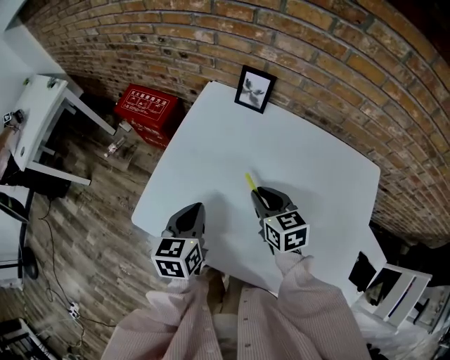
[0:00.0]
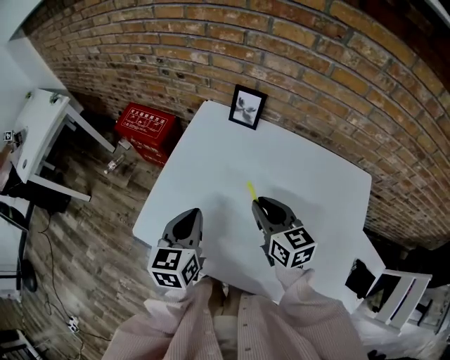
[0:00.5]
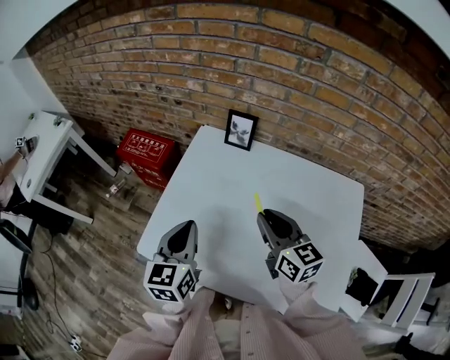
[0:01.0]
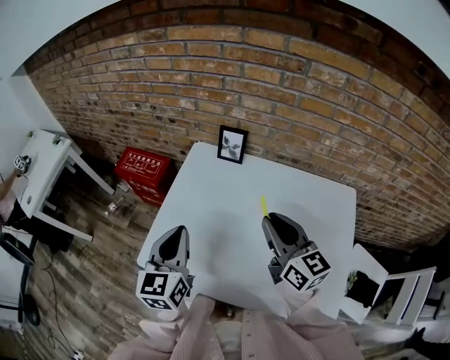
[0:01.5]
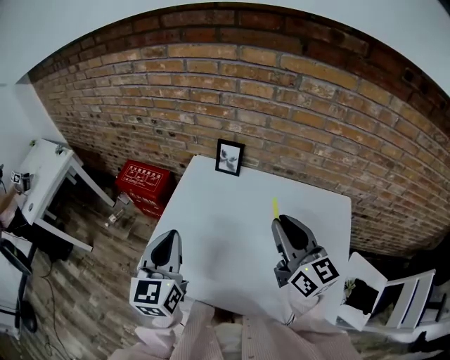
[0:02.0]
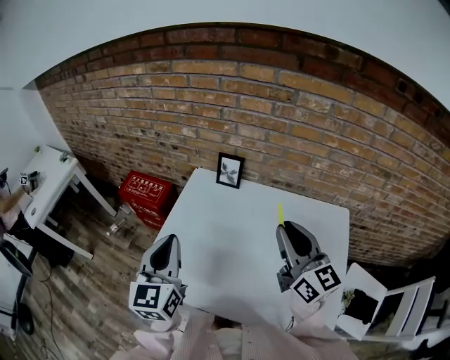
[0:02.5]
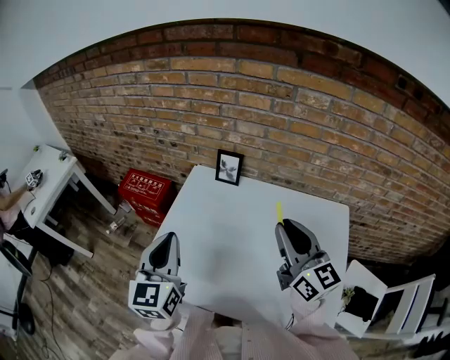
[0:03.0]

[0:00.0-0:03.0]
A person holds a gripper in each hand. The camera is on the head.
0:00.0 to 0:01.5: Both grippers travel together upward, roughly 15 cm. The left gripper turns by approximately 20 degrees. The right gripper points its fingers some 30 degrees further upward.
0:01.5 to 0:03.0: Both grippers travel together upward, some 5 cm.

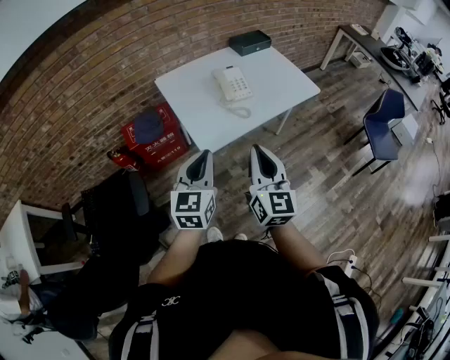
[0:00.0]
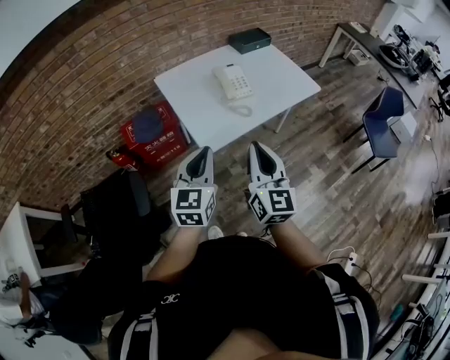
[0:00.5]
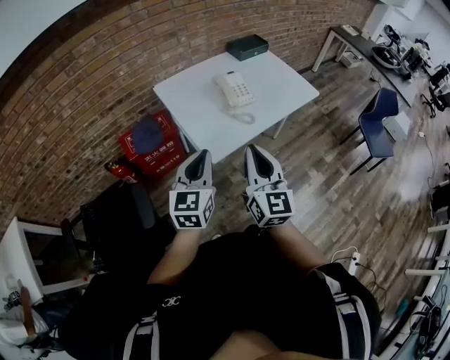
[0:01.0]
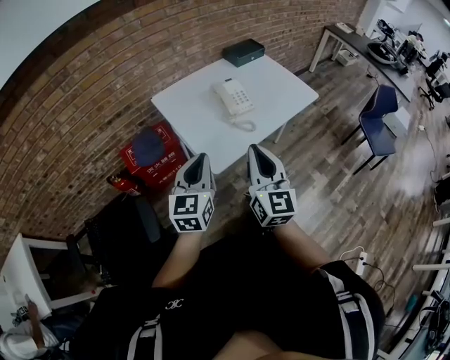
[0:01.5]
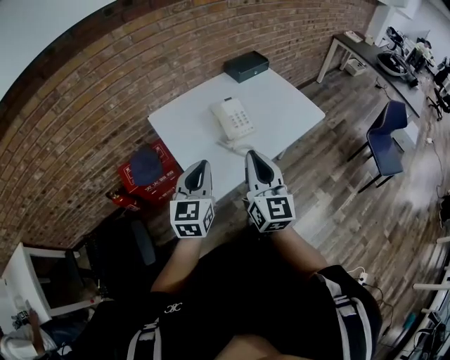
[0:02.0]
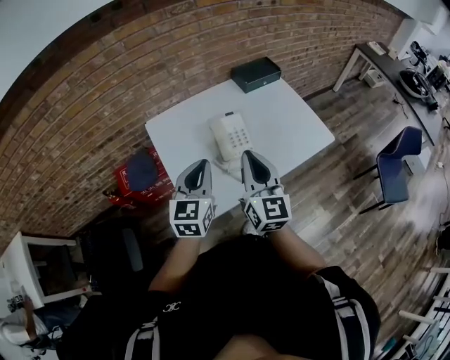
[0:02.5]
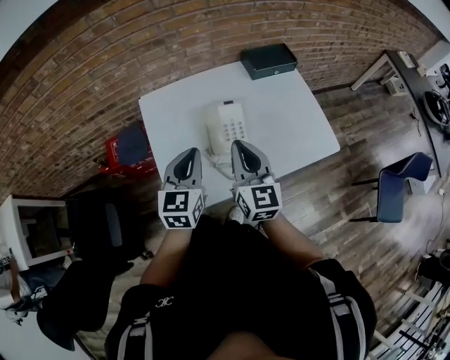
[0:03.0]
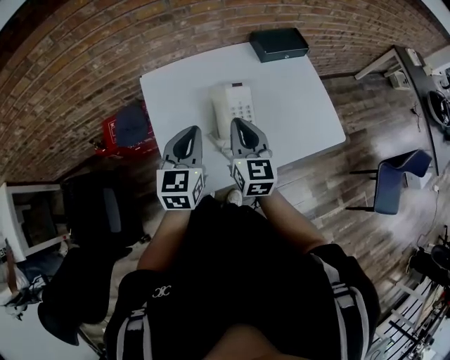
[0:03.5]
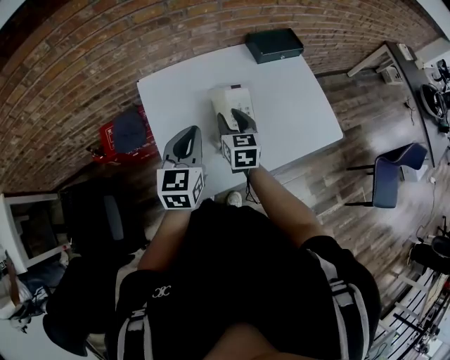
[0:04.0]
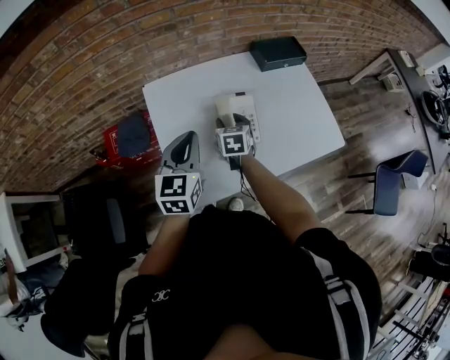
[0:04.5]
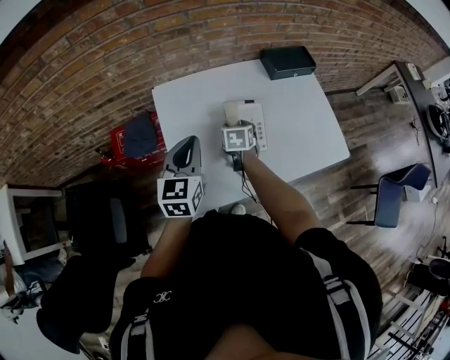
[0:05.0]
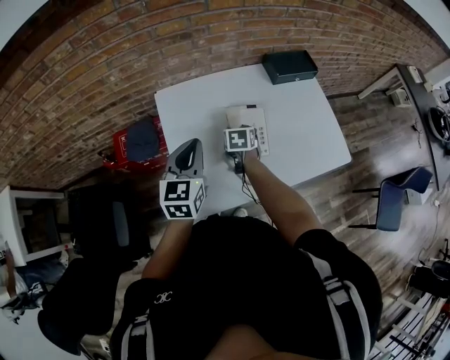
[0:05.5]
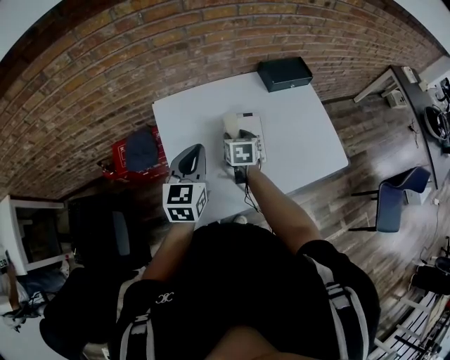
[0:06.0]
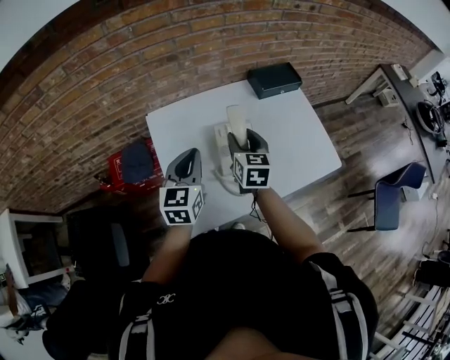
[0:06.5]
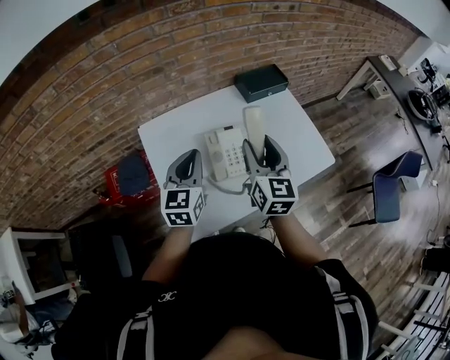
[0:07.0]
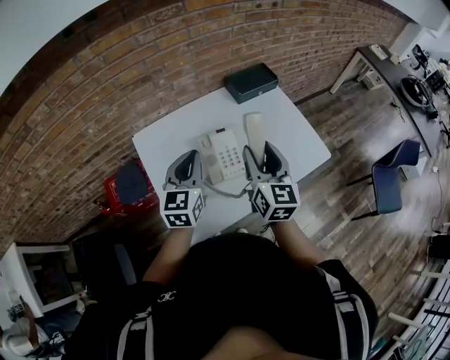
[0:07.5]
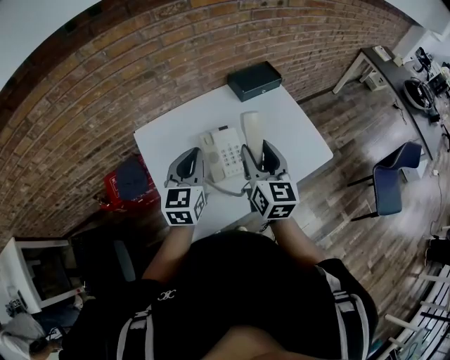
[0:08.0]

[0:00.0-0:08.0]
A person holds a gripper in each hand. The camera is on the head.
0:00.0 to 0:02.0: Both grippers move forward, about 15 cm.
0:02.0 to 0:04.0: The left gripper shifts some 20 cm forward. Meanwhile the right gripper heads forward and downward, covering approximately 35 cm, tips its fingers downward by some 30 degrees, and opens its fingers.
0:04.0 to 0:06.0: The right gripper shifts roughly 5 cm downward.
0:06.0 to 0:08.0: The right gripper shifts about 25 cm upward and to the right, and tips its fingers upward by some 40 degrees. The left gripper shifts some 5 cm to the right.

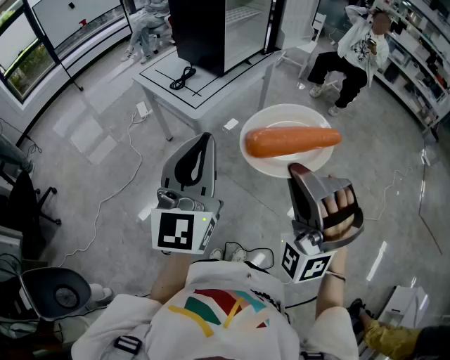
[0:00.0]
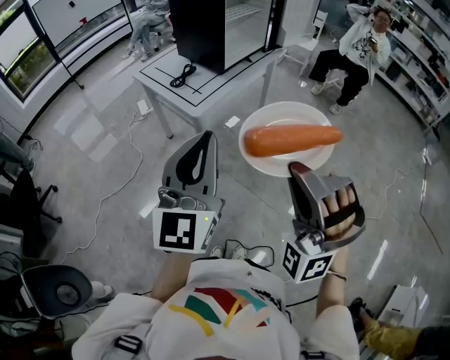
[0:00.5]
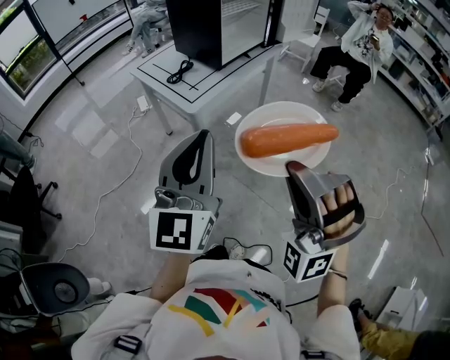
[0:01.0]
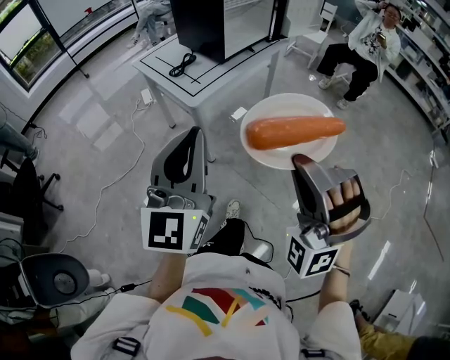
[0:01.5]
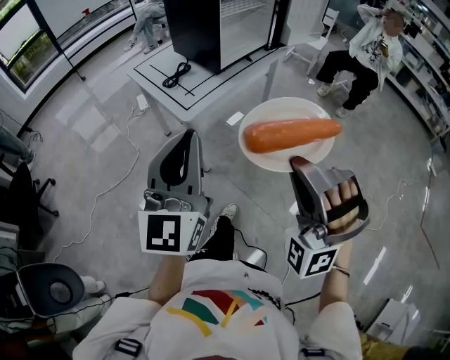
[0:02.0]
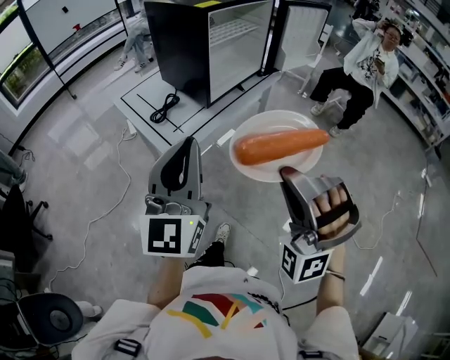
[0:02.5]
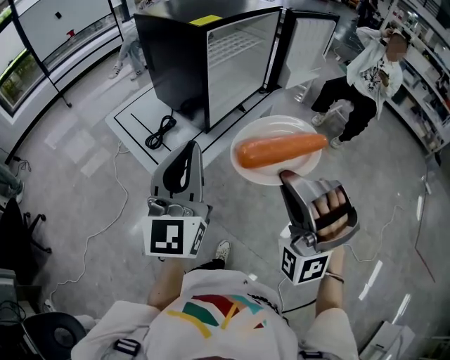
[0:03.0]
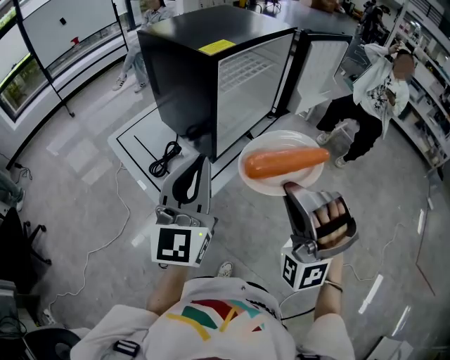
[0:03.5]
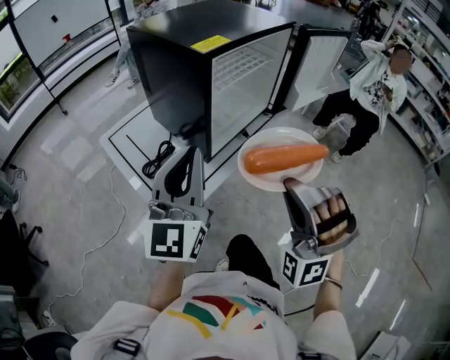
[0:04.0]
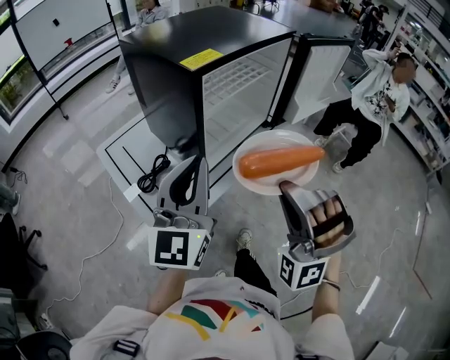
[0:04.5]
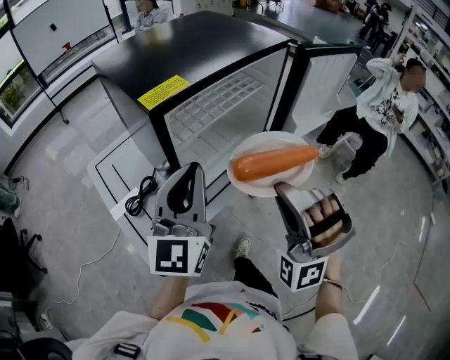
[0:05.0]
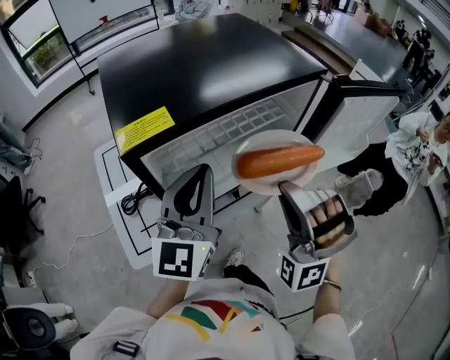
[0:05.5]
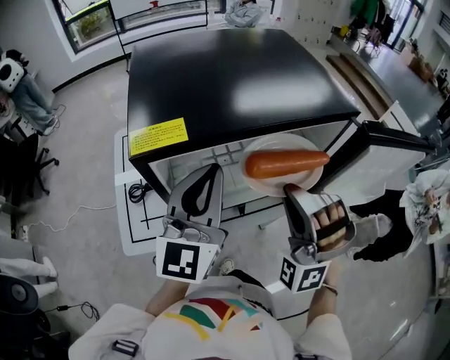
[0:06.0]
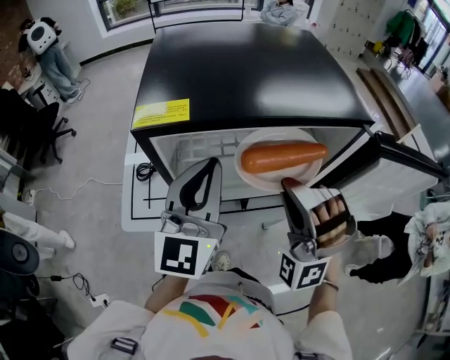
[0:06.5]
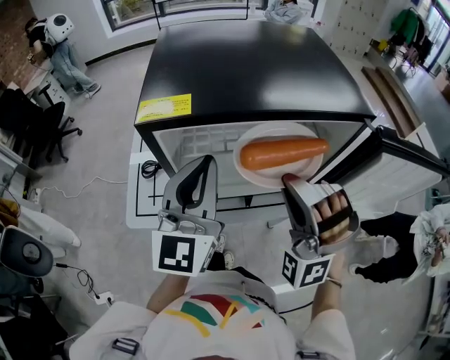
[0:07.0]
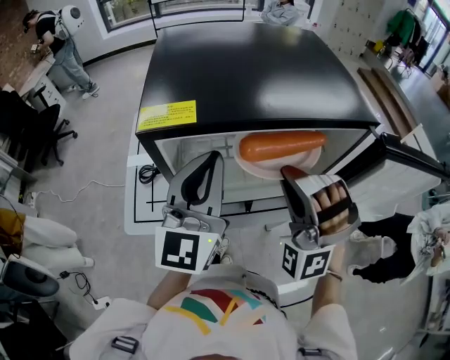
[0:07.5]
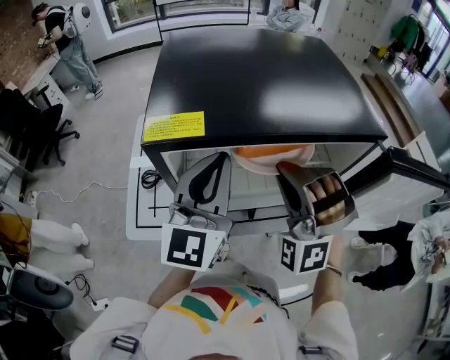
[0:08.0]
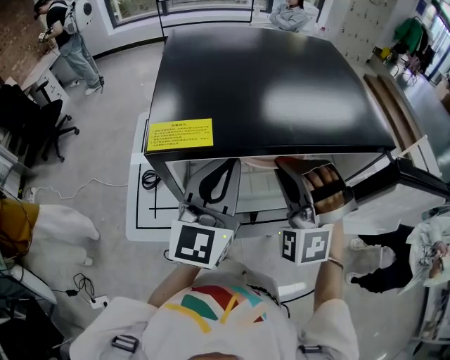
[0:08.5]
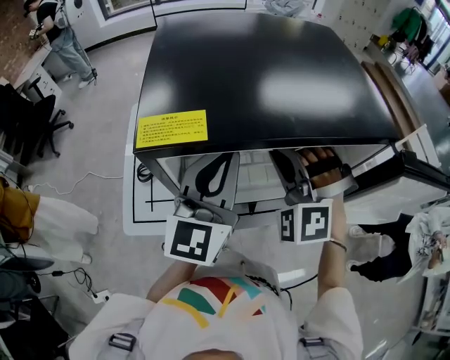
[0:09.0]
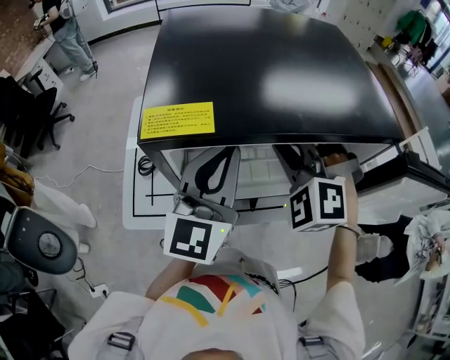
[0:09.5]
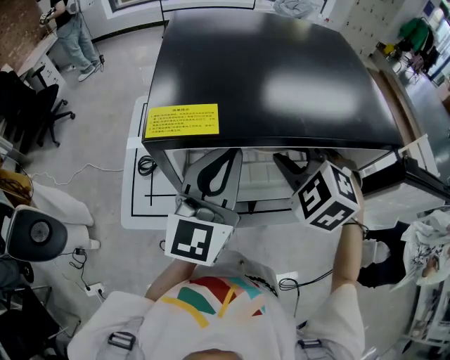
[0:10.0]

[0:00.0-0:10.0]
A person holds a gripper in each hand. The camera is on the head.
0:00.0 to 0:02.0: The left gripper shifts by approximately 10 cm.
0:02.0 to 0:04.0: The left gripper changes place by approximately 40 cm.
0:04.0 to 0:06.0: The left gripper moves roughly 25 cm, and turns by some 30 degrees.

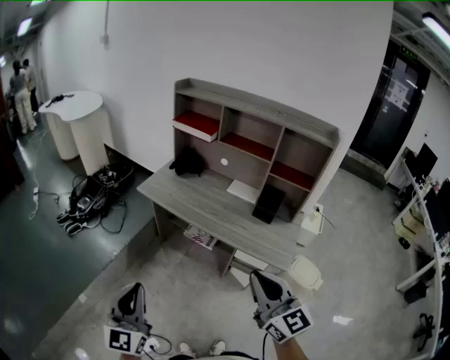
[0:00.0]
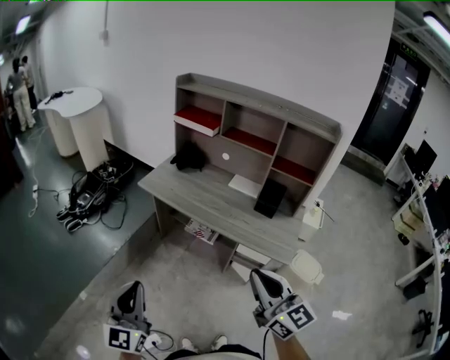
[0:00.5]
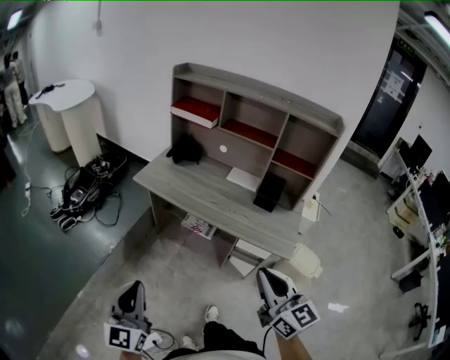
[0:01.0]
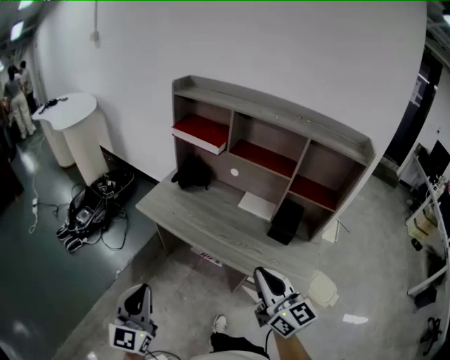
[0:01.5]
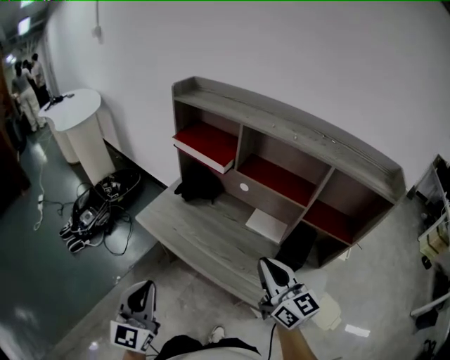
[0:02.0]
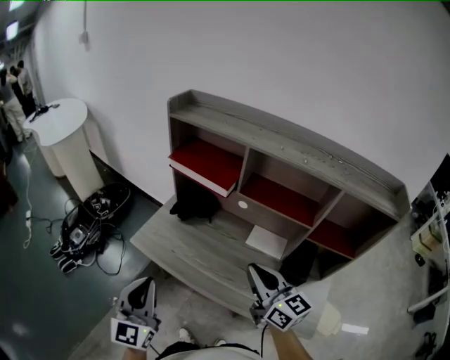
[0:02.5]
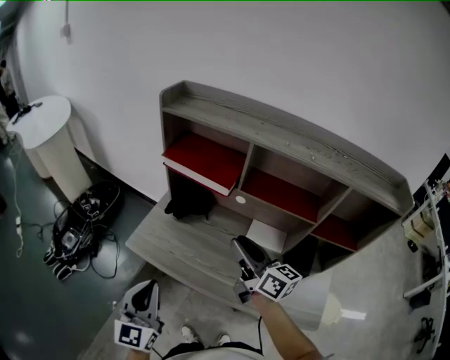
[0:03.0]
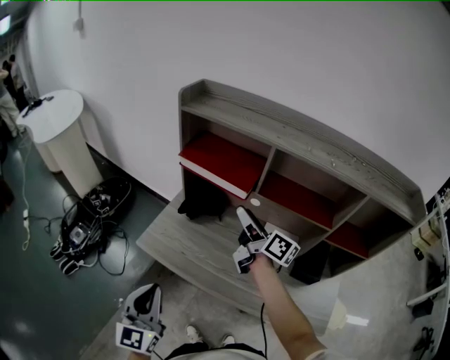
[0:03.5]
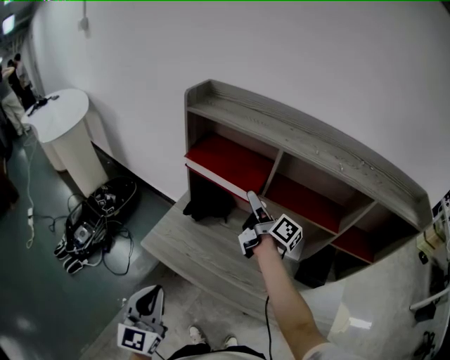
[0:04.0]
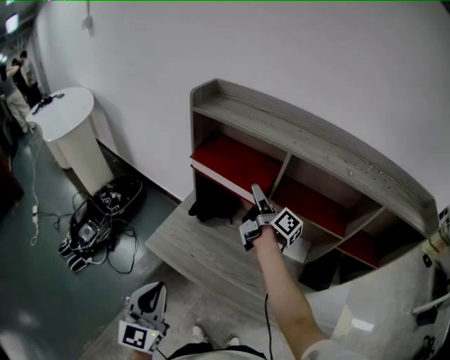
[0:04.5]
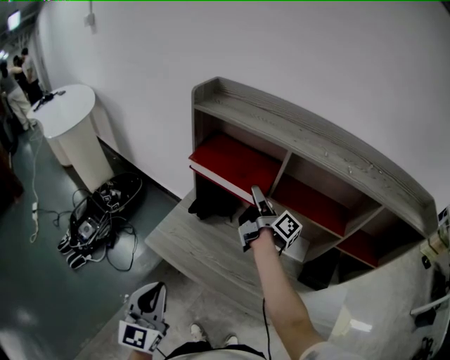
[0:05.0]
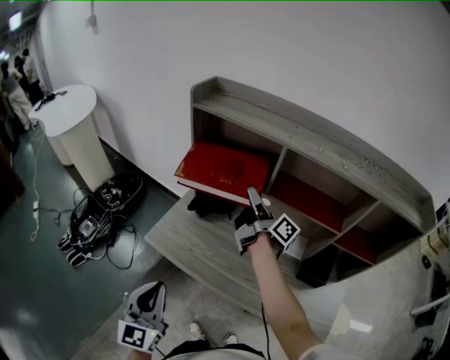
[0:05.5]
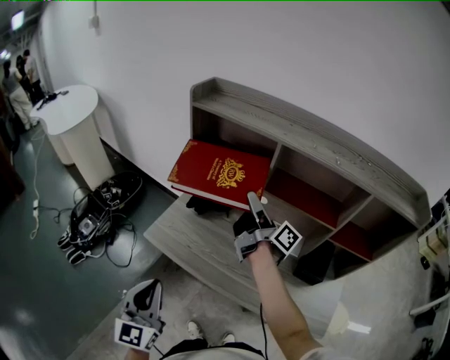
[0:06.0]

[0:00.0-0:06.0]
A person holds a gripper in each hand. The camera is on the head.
0:00.0 to 0:02.0: The two grippers go about 30 cm forward.
0:02.0 to 0:04.0: The right gripper goes approximately 35 cm forward, twists approximately 50 degrees clockwise, seen from behind, and opens up. The left gripper is displaced forward and to the left by some 15 cm.
0:04.0 to 0:06.0: The right gripper shifts roughly 5 cm backward.
